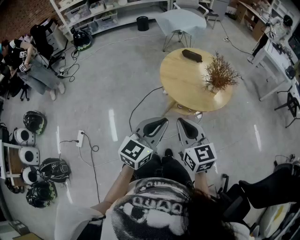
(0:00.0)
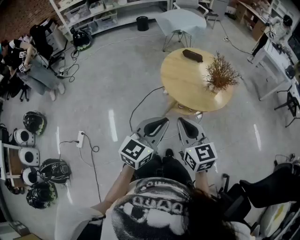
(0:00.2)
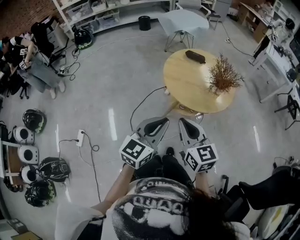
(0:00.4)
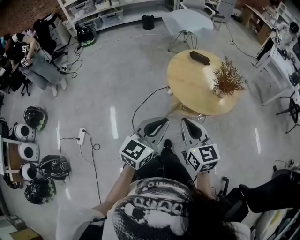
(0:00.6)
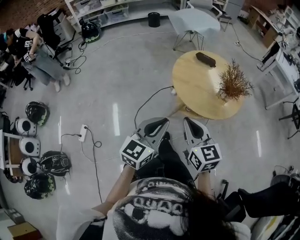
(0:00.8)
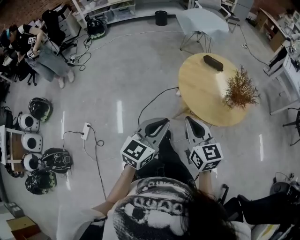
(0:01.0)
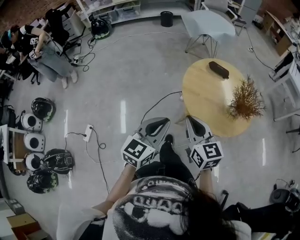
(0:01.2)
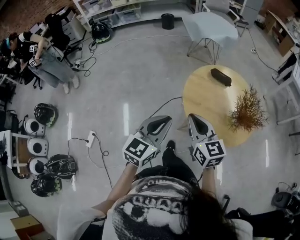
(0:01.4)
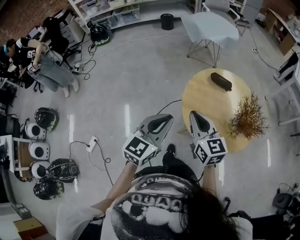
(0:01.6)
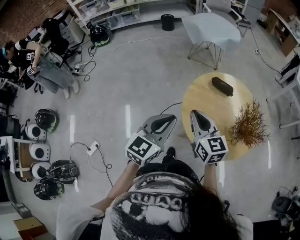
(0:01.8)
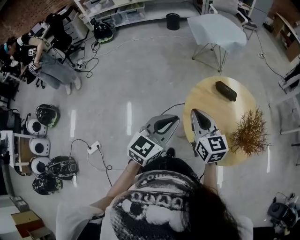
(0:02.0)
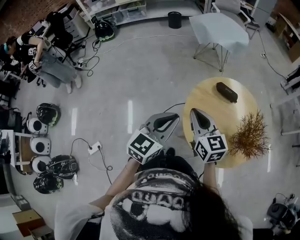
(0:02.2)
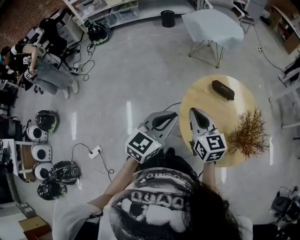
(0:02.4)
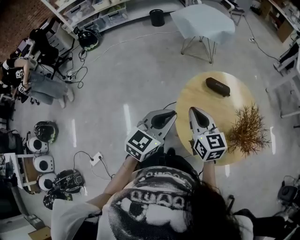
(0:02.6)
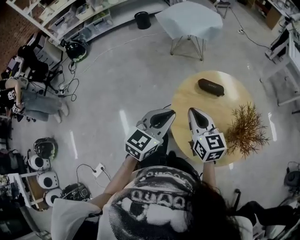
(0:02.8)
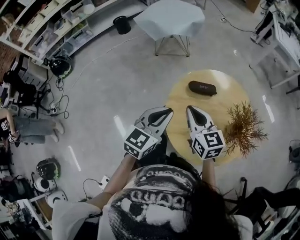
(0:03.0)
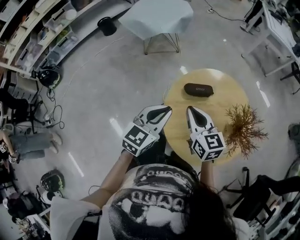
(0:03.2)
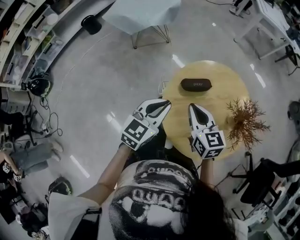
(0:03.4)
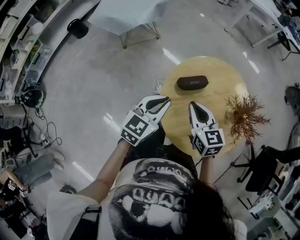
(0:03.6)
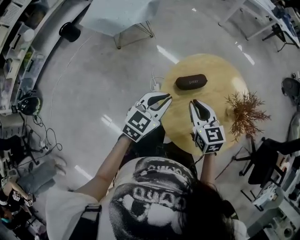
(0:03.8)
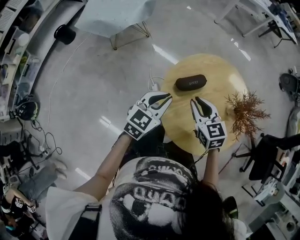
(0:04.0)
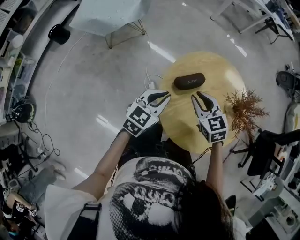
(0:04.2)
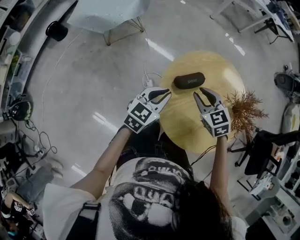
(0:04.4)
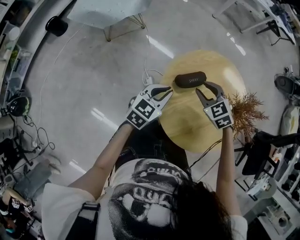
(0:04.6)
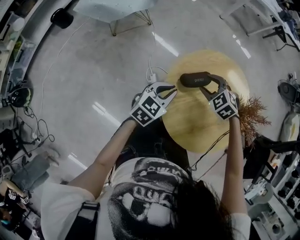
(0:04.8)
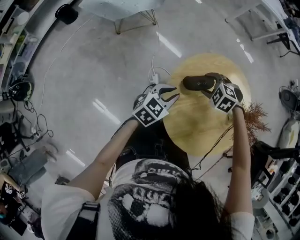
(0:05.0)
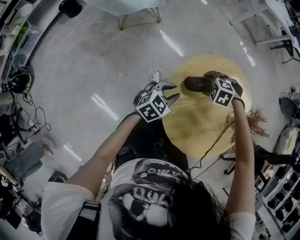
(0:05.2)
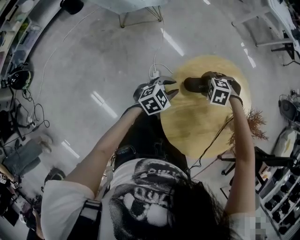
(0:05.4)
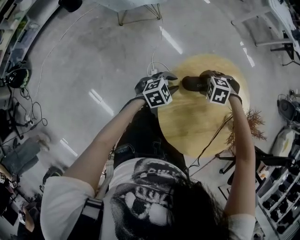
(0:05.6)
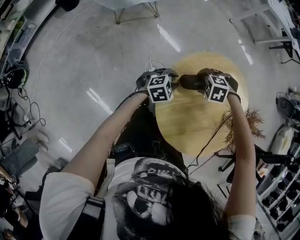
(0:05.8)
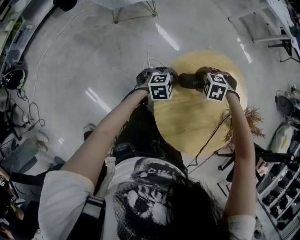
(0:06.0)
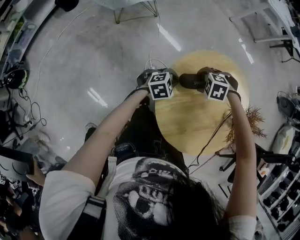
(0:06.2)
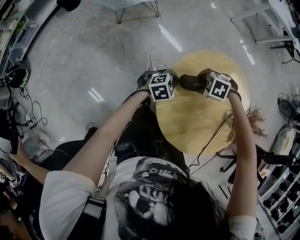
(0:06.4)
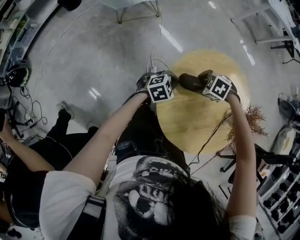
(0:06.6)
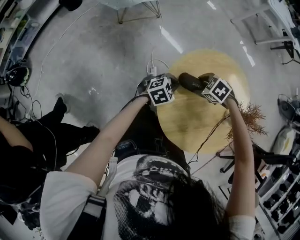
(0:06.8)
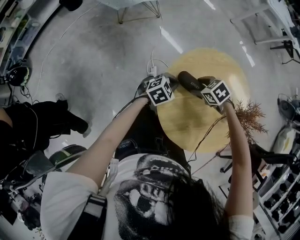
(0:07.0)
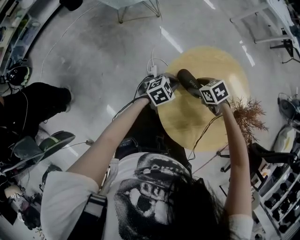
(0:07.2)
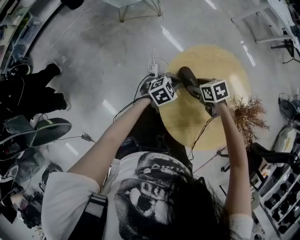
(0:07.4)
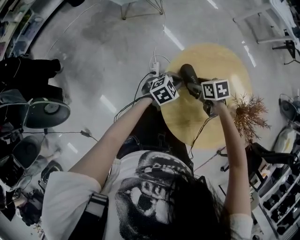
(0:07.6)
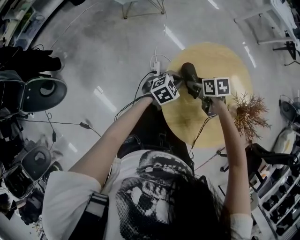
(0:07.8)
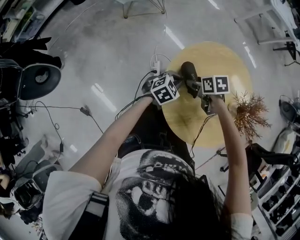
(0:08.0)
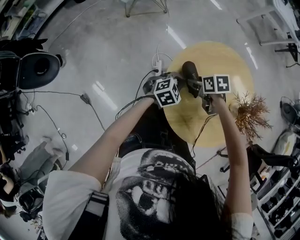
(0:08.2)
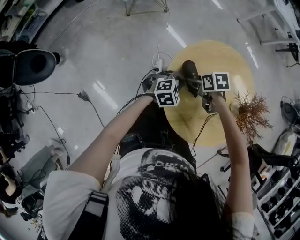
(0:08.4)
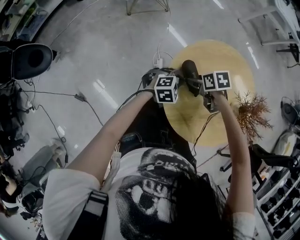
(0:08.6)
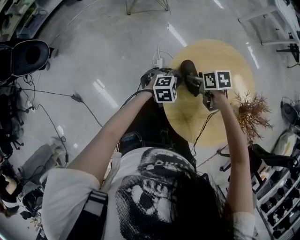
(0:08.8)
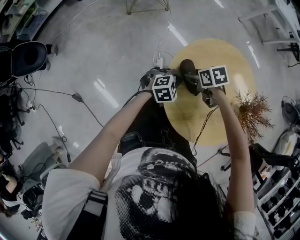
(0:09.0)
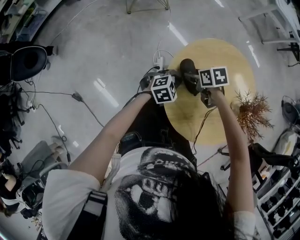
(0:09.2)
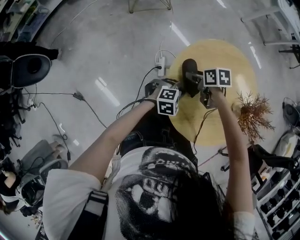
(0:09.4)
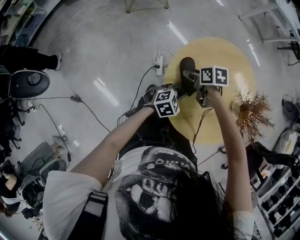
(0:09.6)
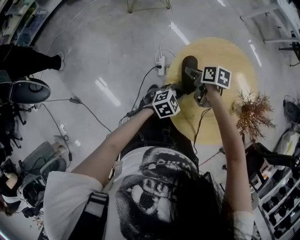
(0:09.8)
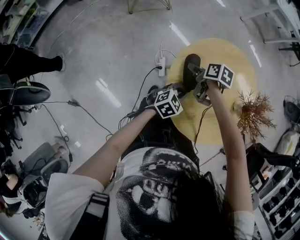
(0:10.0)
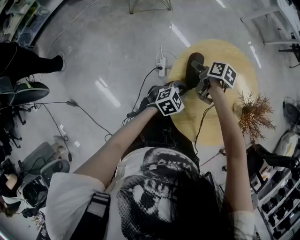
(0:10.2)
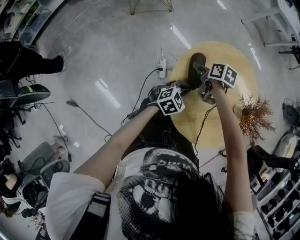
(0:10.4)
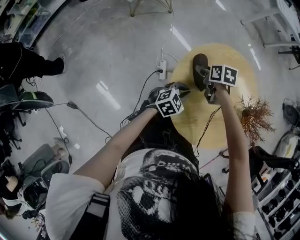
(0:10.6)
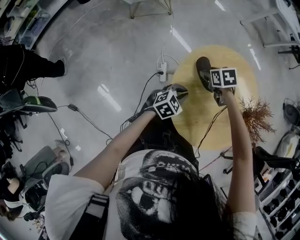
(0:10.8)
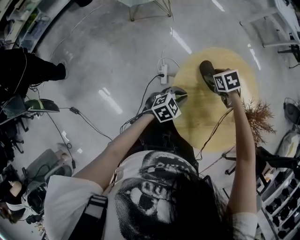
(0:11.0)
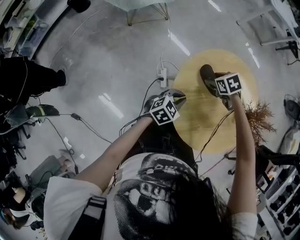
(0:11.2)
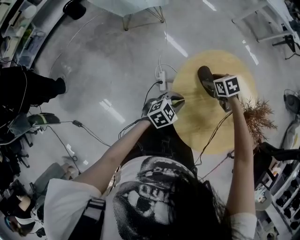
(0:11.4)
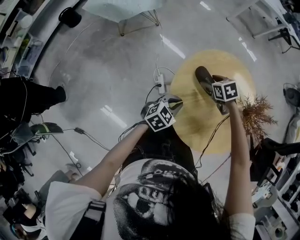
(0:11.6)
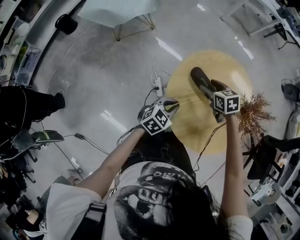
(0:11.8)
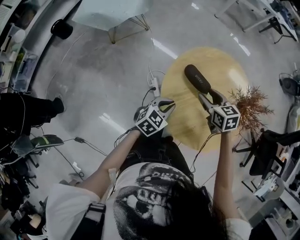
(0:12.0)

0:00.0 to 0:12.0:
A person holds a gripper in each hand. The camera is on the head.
0:00.0 to 0:01.6: Both grippers travel together forward, about 25 cm.
0:01.6 to 0:03.0: The grippers both shift forward by approximately 25 cm. The left gripper turns by approximately 20 degrees.
0:03.0 to 0:04.4: The left gripper moves roughly 20 cm, and turns by some 40 degrees. Meanwhile the right gripper changes place by roughly 20 cm, swivels approximately 30 degrees, and opens its fingers.
0:04.4 to 0:06.0: Both grippers travel together downward, some 15 cm. The left gripper swivels roughly 40 degrees; the right gripper tilts its fingers about 40 degrees downward, and opens its fingers.
0:06.0 to 0:07.6: The right gripper changes place by roughly 5 cm, and rotates around the line of its fingers by some 70 degrees, clockwise from behind. Meanwhile the left gripper changes place by some 5 cm, and rotates approximately 20 degrees.
0:09.0 to 0:10.4: The right gripper ends up about 5 cm from where it was, and rotates about 40 degrees.
0:10.4 to 0:12.0: The left gripper travels upward by roughly 5 cm; the right gripper ends up about 15 cm from where it was, and changes its angle by roughly 30 degrees.

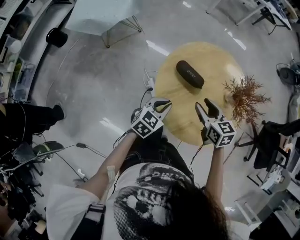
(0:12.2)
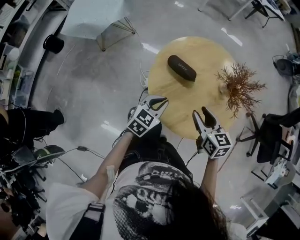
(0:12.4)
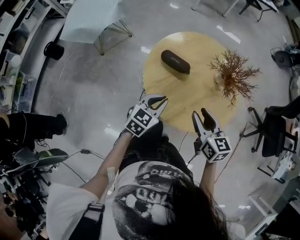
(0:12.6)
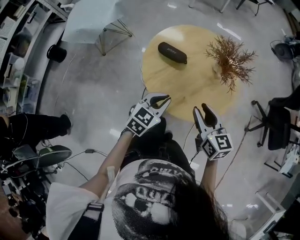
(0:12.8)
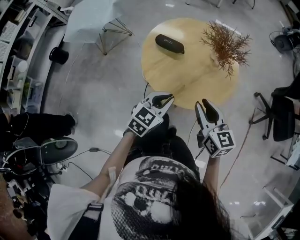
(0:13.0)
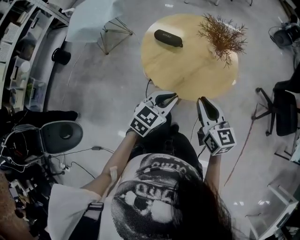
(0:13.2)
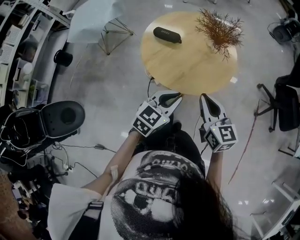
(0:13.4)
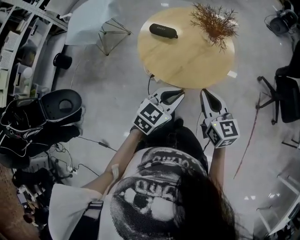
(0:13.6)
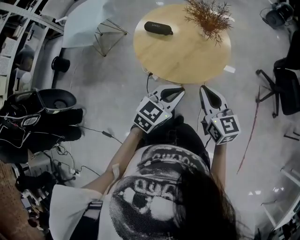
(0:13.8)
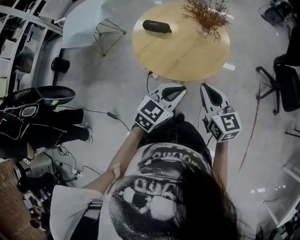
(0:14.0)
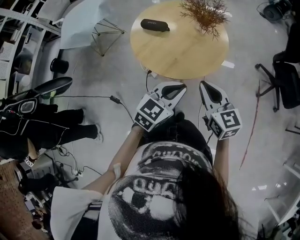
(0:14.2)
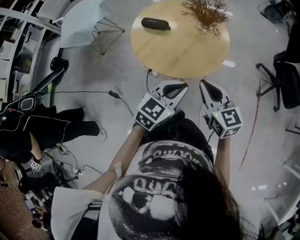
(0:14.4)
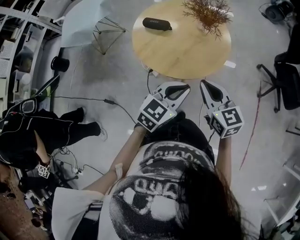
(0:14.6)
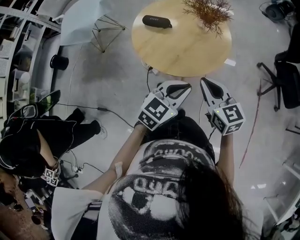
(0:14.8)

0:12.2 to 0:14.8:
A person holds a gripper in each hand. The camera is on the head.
0:12.2 to 0:13.4: The right gripper is displaced backward and to the right by some 25 cm, changes its angle by about 30 degrees, and closes its fingers, while the left gripper is displaced backward, to the right and upward by some 25 cm.
0:13.4 to 0:14.8: The left gripper is displaced to the right by some 5 cm.

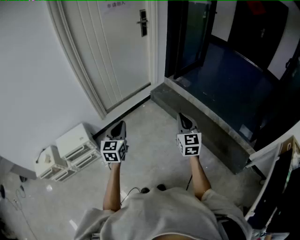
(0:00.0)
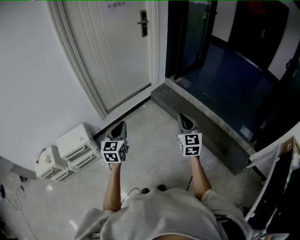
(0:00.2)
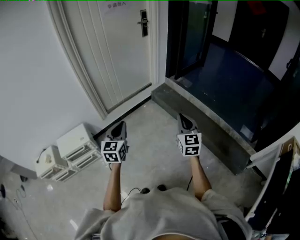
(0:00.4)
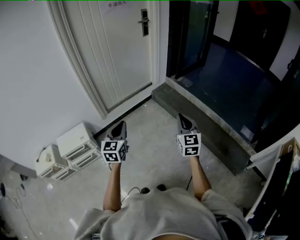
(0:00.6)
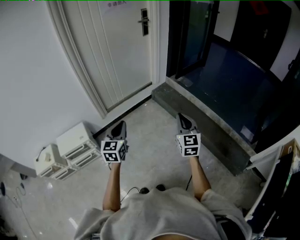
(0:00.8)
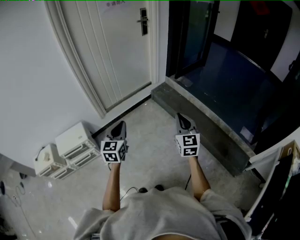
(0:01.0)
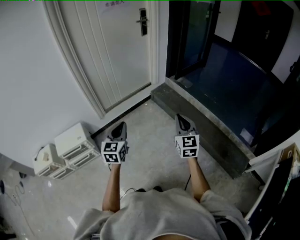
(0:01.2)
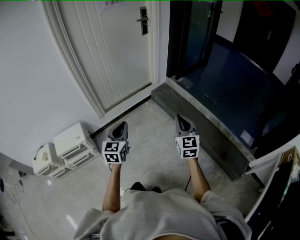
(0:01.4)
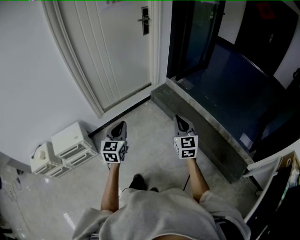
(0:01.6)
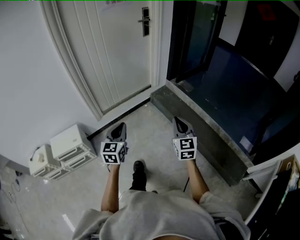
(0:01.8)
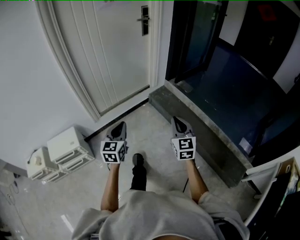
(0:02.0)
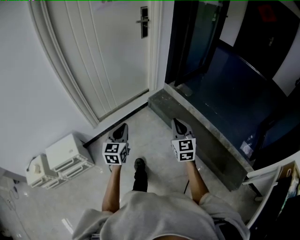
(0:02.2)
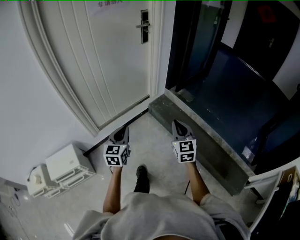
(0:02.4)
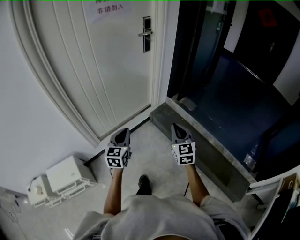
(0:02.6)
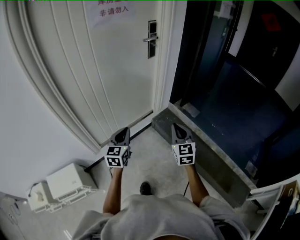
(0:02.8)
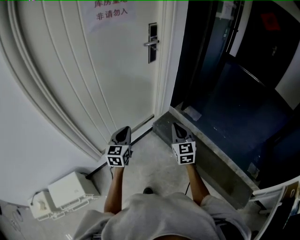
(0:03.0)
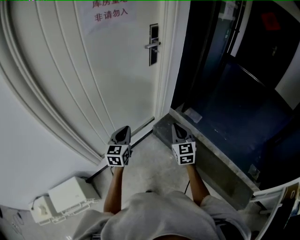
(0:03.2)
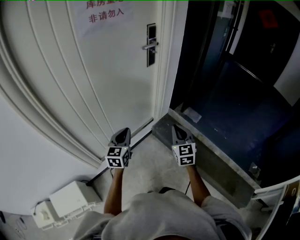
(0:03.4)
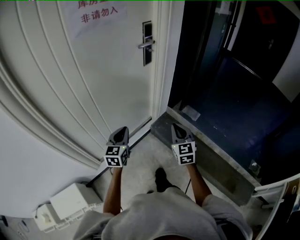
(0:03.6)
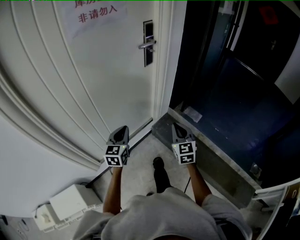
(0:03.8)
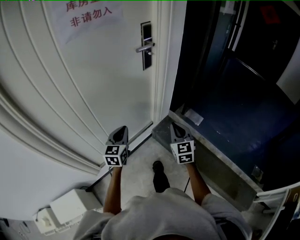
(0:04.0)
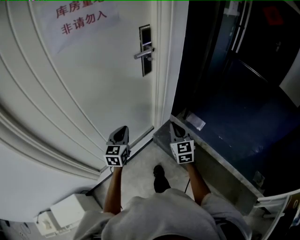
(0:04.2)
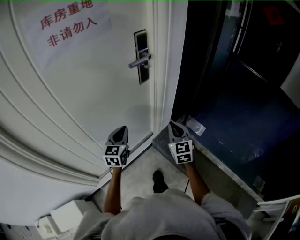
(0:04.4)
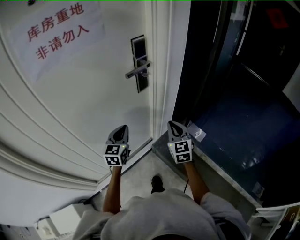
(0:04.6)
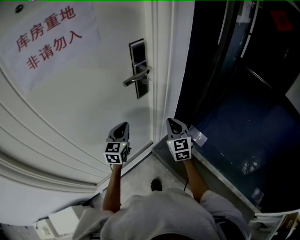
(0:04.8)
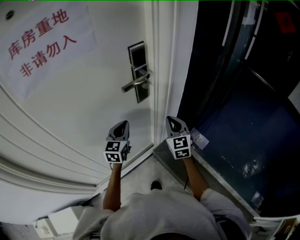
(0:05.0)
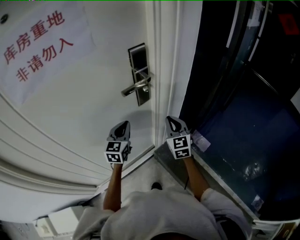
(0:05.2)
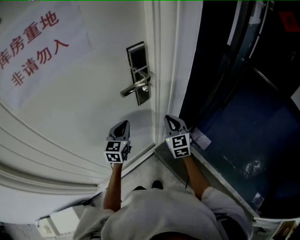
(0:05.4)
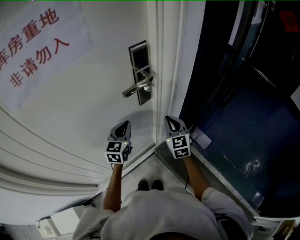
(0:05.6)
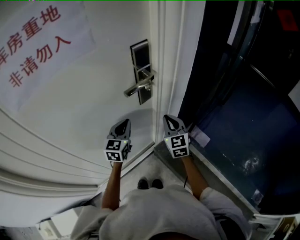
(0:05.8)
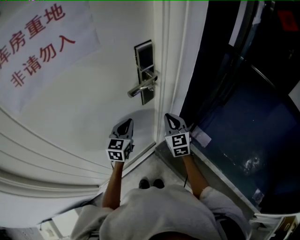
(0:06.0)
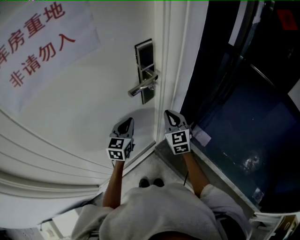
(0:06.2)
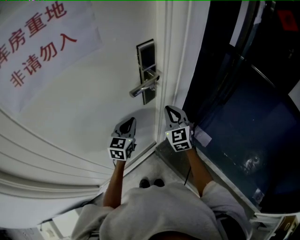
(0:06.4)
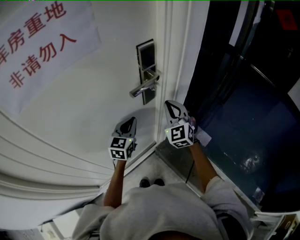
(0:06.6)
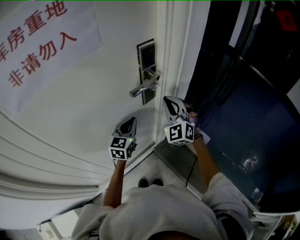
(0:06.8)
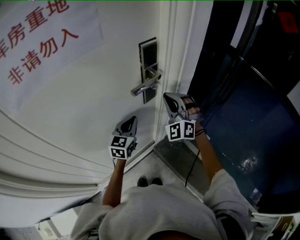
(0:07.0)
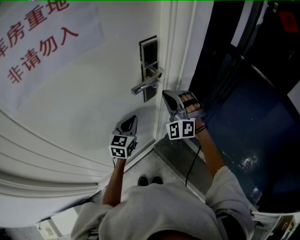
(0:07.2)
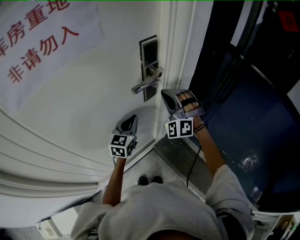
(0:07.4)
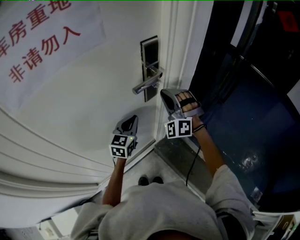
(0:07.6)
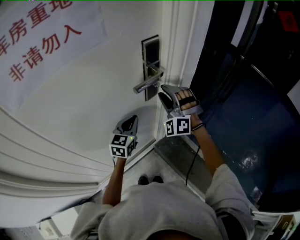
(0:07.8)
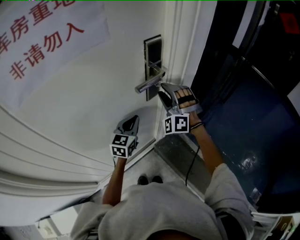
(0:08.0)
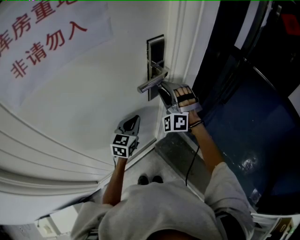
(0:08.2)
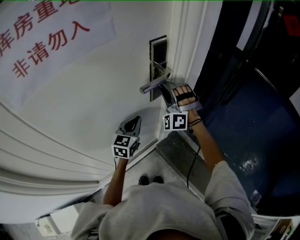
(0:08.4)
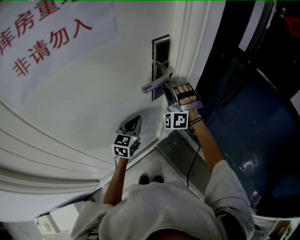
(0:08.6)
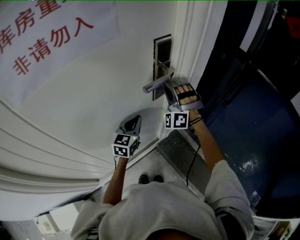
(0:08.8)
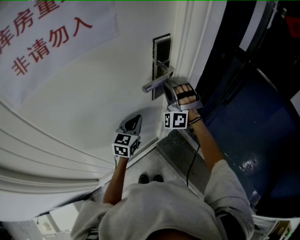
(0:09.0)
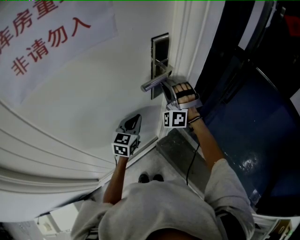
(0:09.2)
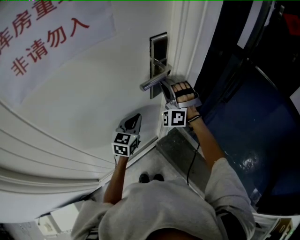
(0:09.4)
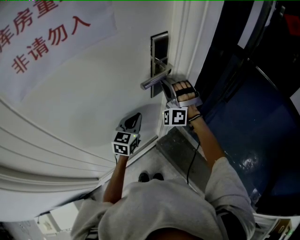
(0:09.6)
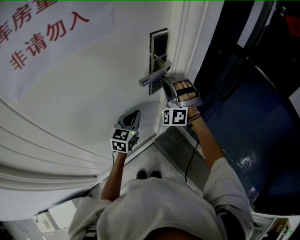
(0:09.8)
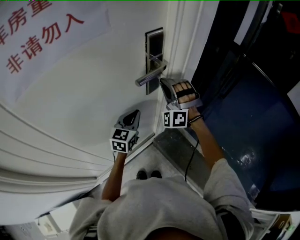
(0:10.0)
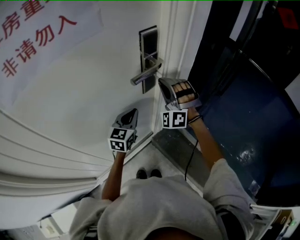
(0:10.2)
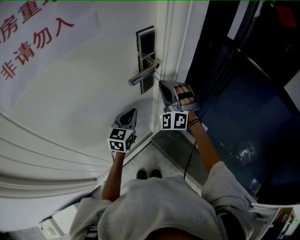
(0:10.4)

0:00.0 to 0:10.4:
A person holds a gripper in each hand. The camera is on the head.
0:00.0 to 0:01.4: The right gripper goes some 5 cm forward, while the left gripper goes roughly 5 cm to the right.
0:01.4 to 0:03.0: The two grippers travel together, forward, approximately 50 cm.
0:03.0 to 0:04.4: The grippers both shift forward by approximately 30 cm.
0:04.4 to 0:06.0: The two grippers go approximately 20 cm forward.
0:06.0 to 0:07.4: The right gripper travels upward by approximately 10 cm, and rolls counterclockwise, seen from behind, by some 70 degrees.
0:07.4 to 0:09.0: The right gripper shifts by about 5 cm, and opens, then closes again.
0:09.0 to 0:10.4: The right gripper moves some 5 cm.
